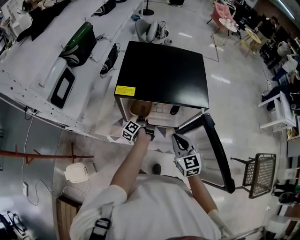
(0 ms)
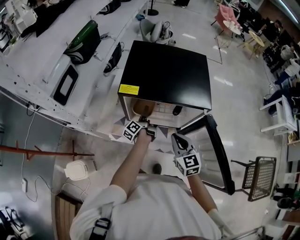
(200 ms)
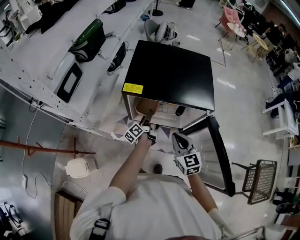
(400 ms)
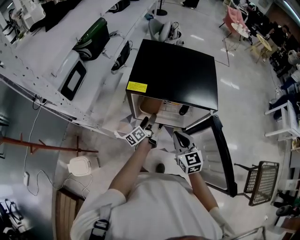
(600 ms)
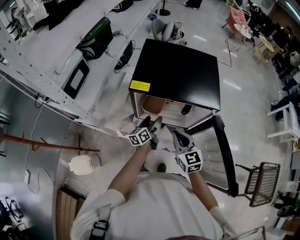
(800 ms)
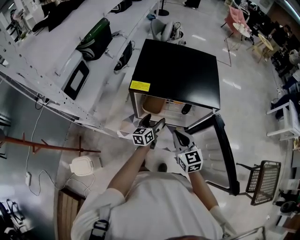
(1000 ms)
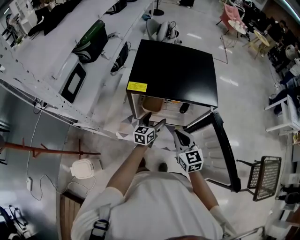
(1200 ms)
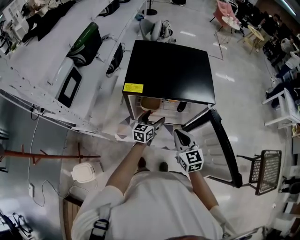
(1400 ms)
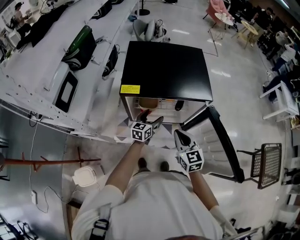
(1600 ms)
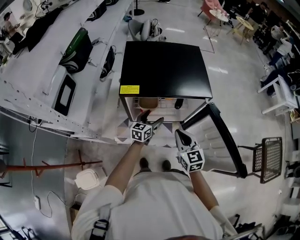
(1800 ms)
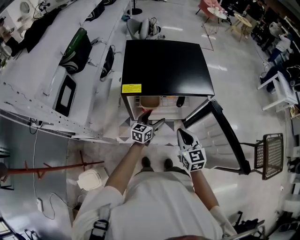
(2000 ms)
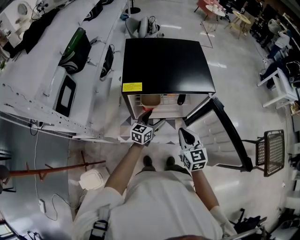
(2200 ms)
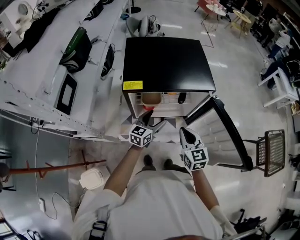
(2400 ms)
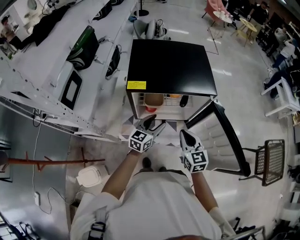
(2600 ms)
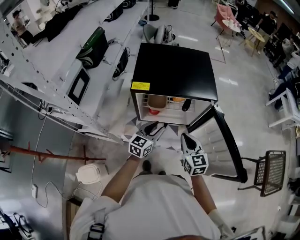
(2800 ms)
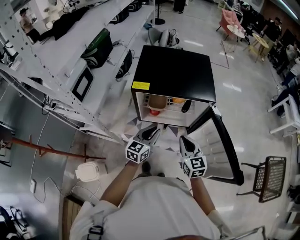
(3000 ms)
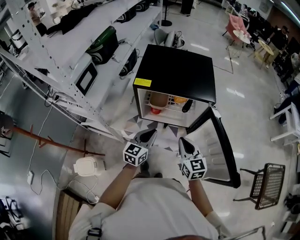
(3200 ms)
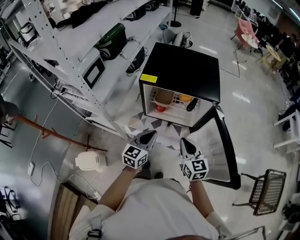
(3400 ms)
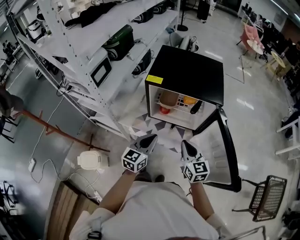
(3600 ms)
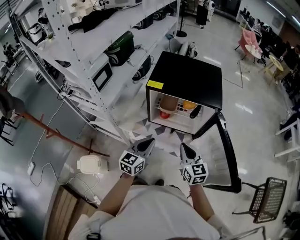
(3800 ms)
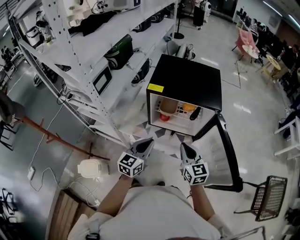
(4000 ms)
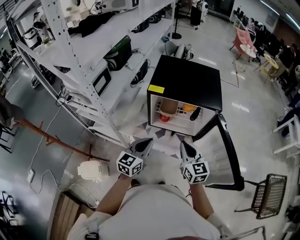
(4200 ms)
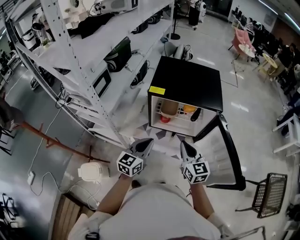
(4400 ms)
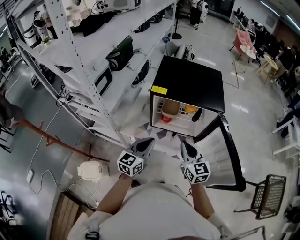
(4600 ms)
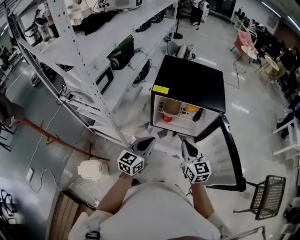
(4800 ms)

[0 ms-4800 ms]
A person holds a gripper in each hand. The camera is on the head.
0 ms to 1600 ms: The left gripper goes roughly 5 cm to the right, and rolls clockwise, seen from behind, by some 70 degrees.
1600 ms to 3200 ms: The left gripper travels backward and upward by some 20 cm, and closes; the right gripper goes about 5 cm backward.
3200 ms to 4800 ms: The right gripper heads to the left, covering some 5 cm. The left gripper is displaced to the left and upward by approximately 10 cm.

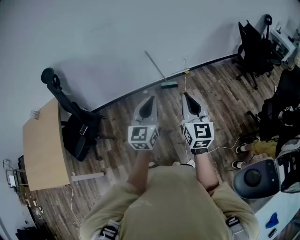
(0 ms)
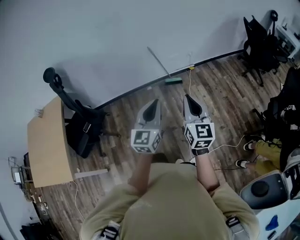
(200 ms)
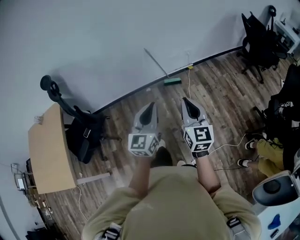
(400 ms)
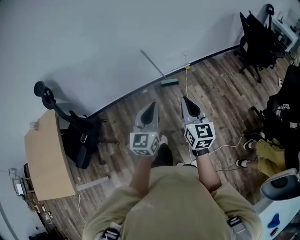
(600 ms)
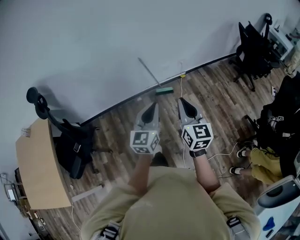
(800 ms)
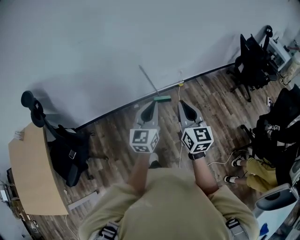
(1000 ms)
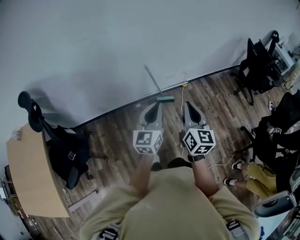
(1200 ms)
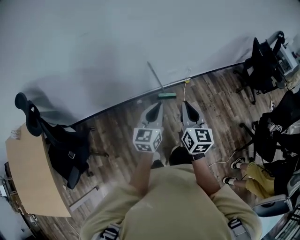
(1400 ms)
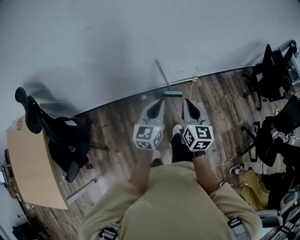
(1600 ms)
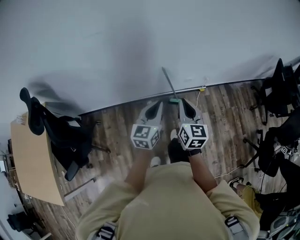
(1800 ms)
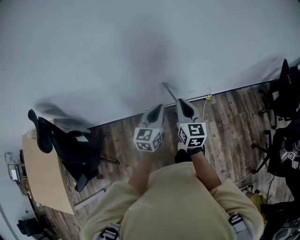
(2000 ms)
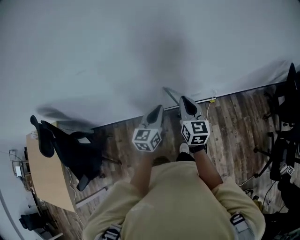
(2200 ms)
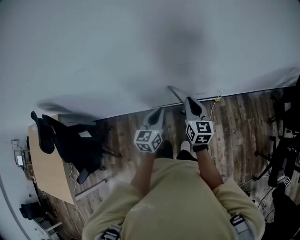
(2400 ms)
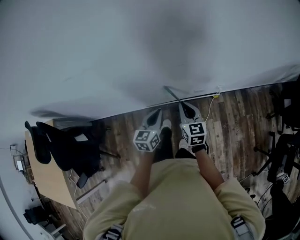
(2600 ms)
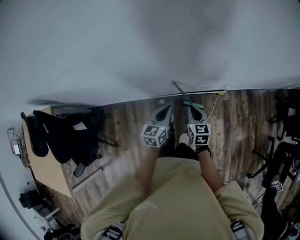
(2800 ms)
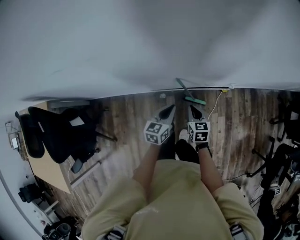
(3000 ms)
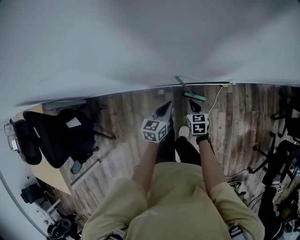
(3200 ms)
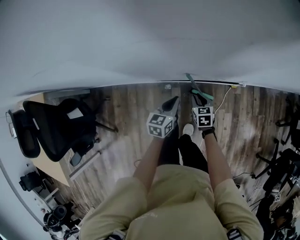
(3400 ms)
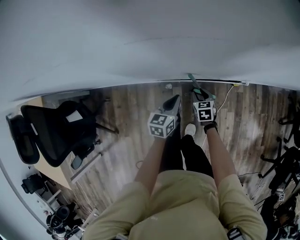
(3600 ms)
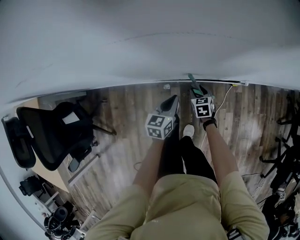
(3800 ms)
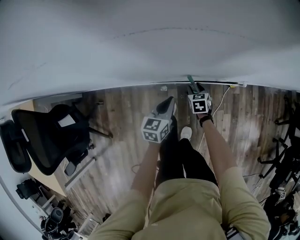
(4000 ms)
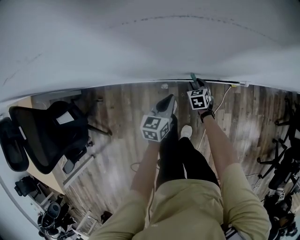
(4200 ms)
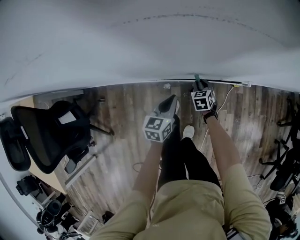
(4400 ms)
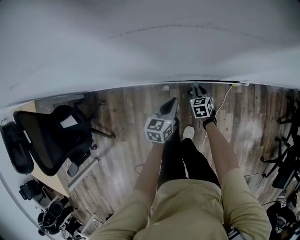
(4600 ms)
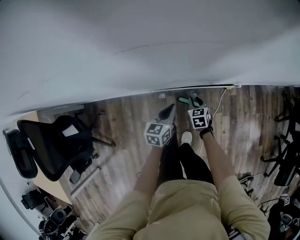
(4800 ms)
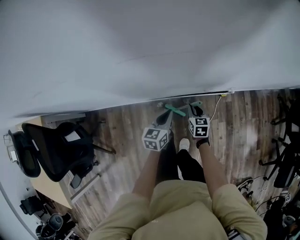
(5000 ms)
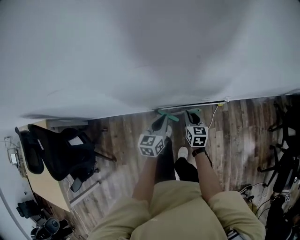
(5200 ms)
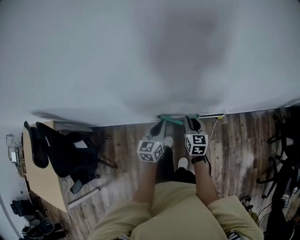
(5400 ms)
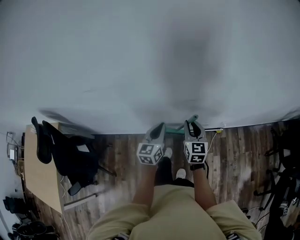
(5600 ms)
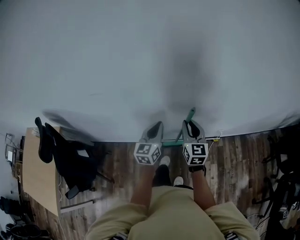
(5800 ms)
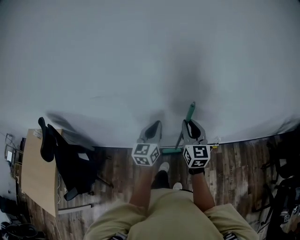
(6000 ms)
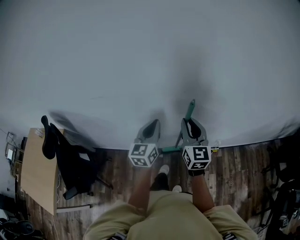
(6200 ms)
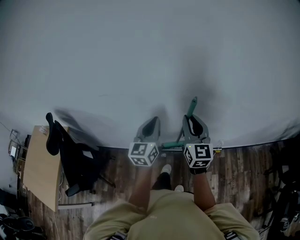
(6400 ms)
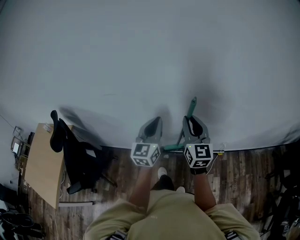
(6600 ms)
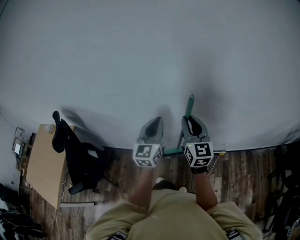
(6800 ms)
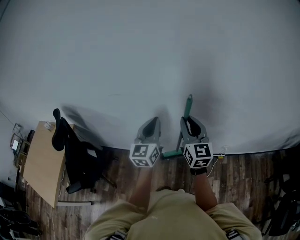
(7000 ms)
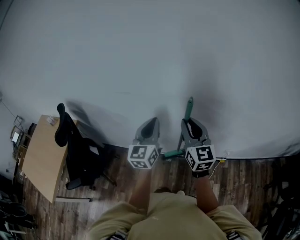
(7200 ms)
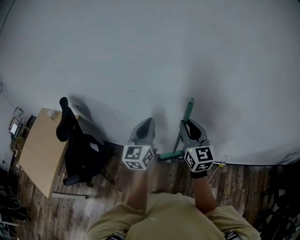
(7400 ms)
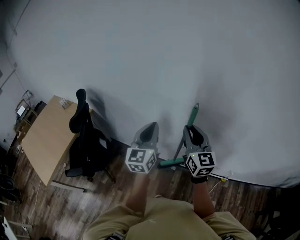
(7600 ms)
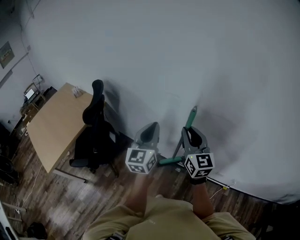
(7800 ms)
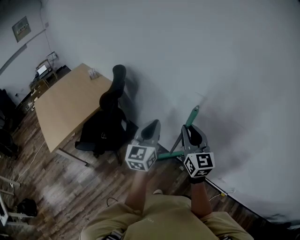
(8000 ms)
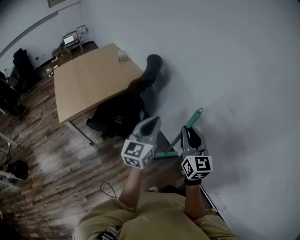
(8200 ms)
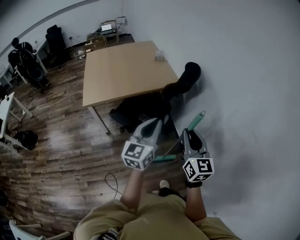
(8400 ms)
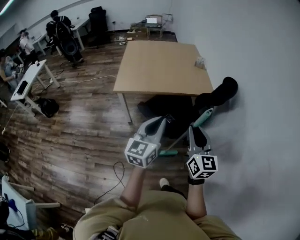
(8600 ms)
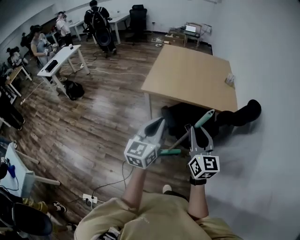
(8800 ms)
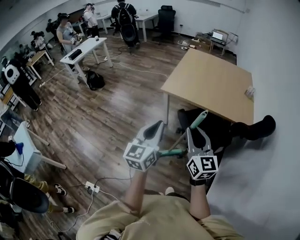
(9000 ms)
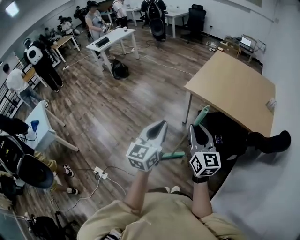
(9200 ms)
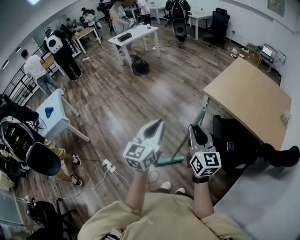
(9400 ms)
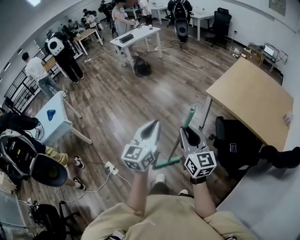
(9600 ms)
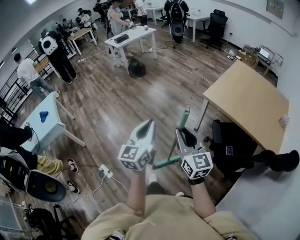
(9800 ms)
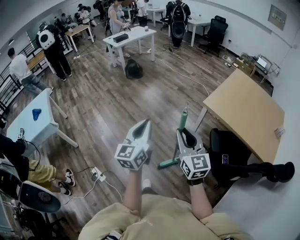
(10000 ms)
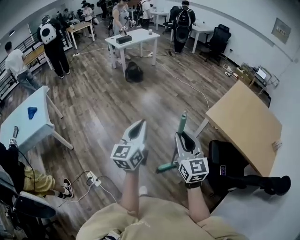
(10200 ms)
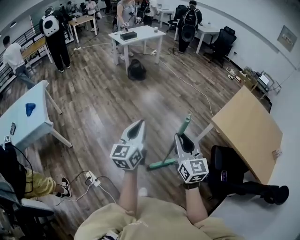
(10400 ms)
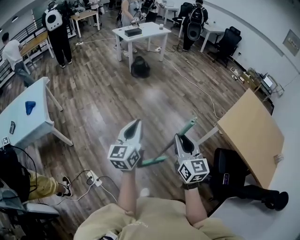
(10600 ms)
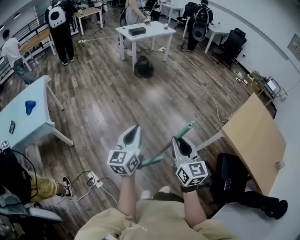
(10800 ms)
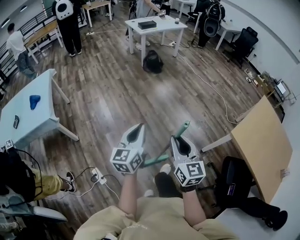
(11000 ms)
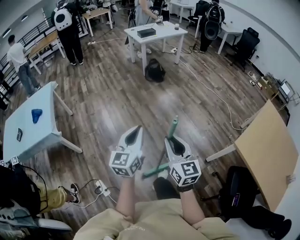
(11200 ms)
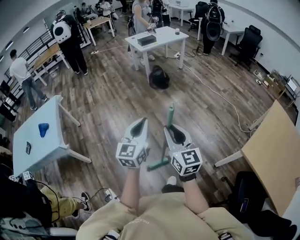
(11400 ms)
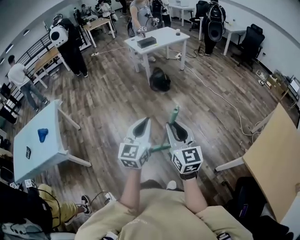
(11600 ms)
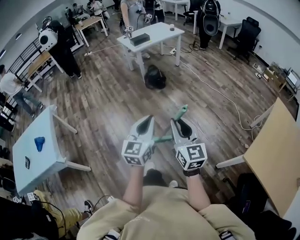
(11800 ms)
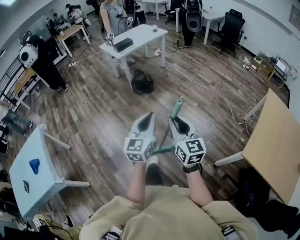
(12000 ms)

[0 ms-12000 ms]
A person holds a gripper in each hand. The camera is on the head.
0 ms to 1600 ms: Both grippers are carried forward, approximately 50 cm.
1600 ms to 3000 ms: The grippers both shift forward and downward by some 40 cm. The right gripper swivels about 30 degrees. The left gripper rotates about 20 degrees.
3000 ms to 4400 ms: The right gripper shifts roughly 25 cm downward and forward, rotates approximately 20 degrees, and opens, then closes once more; the left gripper goes roughly 15 cm downward and to the left.
4400 ms to 6000 ms: Both grippers travel together upward, about 50 cm. The left gripper rotates approximately 30 degrees; the right gripper angles its fingers upward, by approximately 50 degrees.
6000 ms to 7600 ms: The grippers both shift to the left and upward by about 25 cm. The left gripper rotates some 20 degrees. The right gripper turns by roughly 30 degrees.
7600 ms to 9000 ms: The two grippers travel together, about 60 cm. The right gripper changes its angle by roughly 90 degrees; the left gripper changes its angle by roughly 90 degrees.
9000 ms to 10400 ms: The two grippers travel together, about 50 cm. The right gripper changes its angle by some 30 degrees. The left gripper rotates some 30 degrees.
10400 ms to 12000 ms: Both grippers are carried forward, approximately 60 cm.

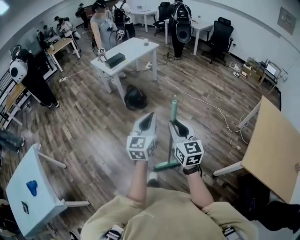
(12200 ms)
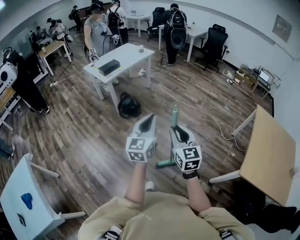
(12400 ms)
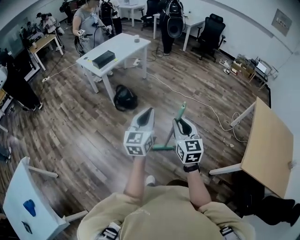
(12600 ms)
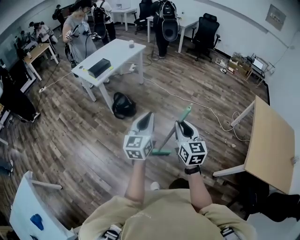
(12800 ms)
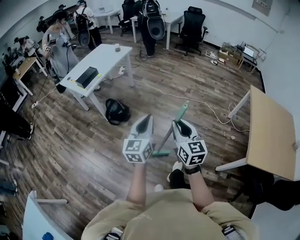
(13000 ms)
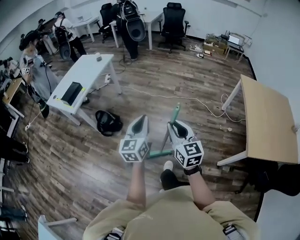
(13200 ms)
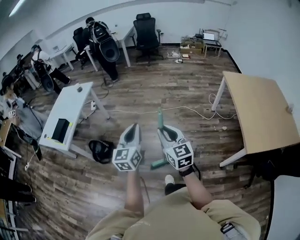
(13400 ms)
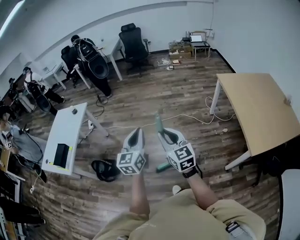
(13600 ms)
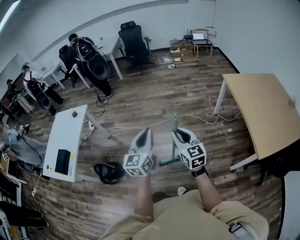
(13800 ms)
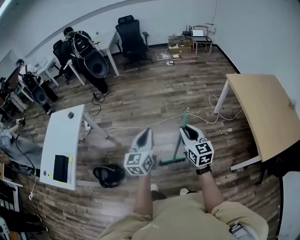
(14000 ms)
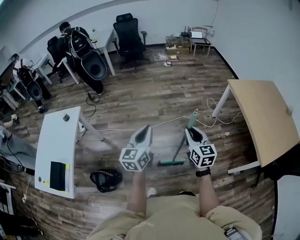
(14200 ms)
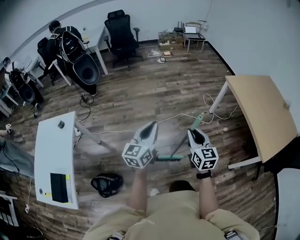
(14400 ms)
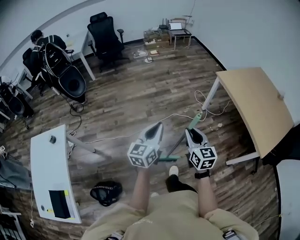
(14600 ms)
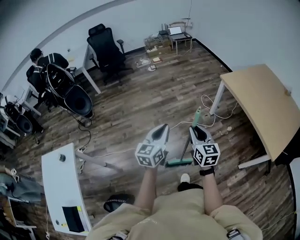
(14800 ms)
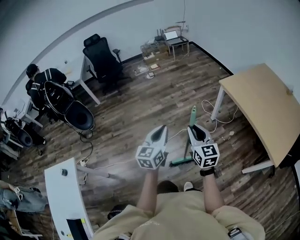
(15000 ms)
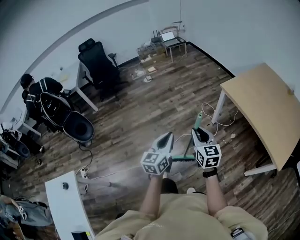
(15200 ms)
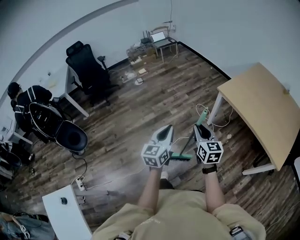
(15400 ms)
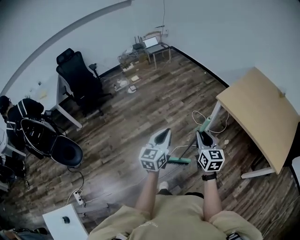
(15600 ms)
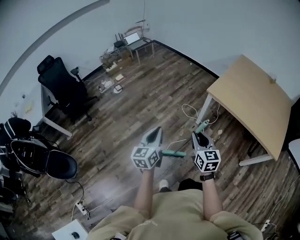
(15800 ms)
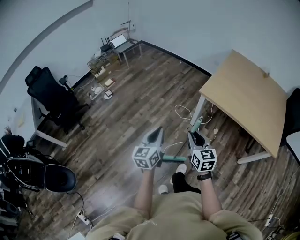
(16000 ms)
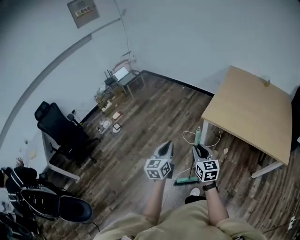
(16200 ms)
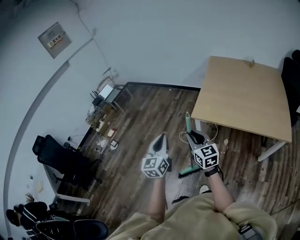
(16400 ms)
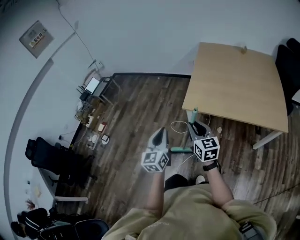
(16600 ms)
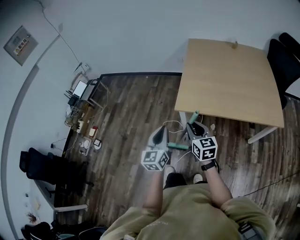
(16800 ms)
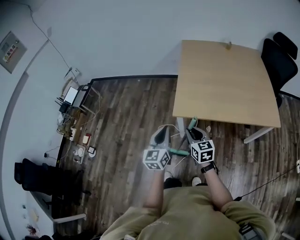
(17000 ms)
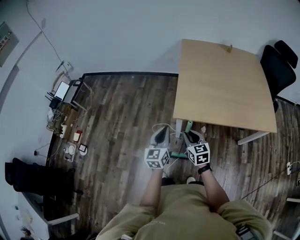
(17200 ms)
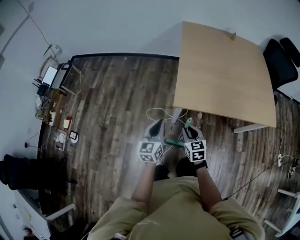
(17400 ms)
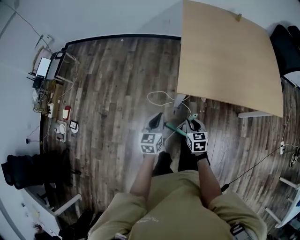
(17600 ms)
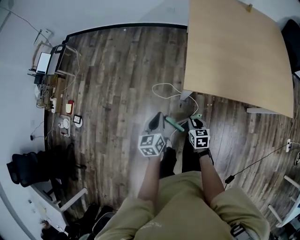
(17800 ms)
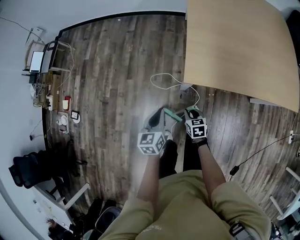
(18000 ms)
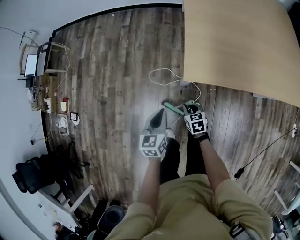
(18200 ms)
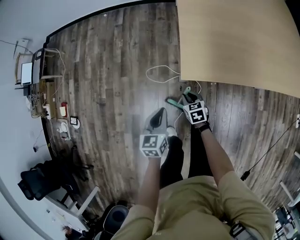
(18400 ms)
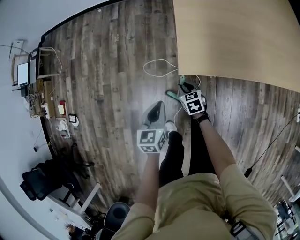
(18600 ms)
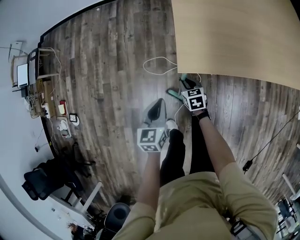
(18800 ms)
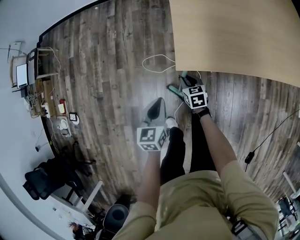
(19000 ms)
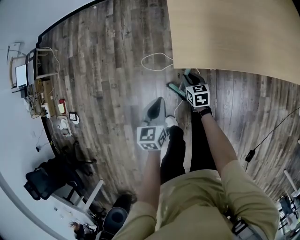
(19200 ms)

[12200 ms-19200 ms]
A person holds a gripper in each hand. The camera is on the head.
12200 ms to 13600 ms: The two grippers travel together, some 50 cm. The right gripper rotates some 30 degrees. Meanwhile the left gripper swivels some 40 degrees.
13600 ms to 15000 ms: The two grippers travel together, approximately 50 cm. The left gripper turns by about 30 degrees. Meanwhile the right gripper swivels about 30 degrees.
15000 ms to 16400 ms: Both grippers are carried approximately 50 cm. The left gripper turns by approximately 30 degrees; the right gripper turns by some 30 degrees.
16400 ms to 17800 ms: The right gripper shifts about 40 cm downward, and tips its fingers downward by some 40 degrees. The left gripper changes place by about 40 cm, and swivels some 30 degrees.
17800 ms to 19200 ms: The left gripper shifts about 15 cm downward. The right gripper is displaced downward and forward by roughly 20 cm.
